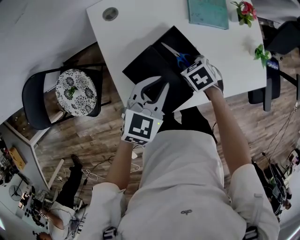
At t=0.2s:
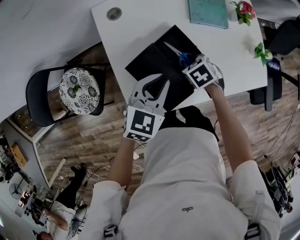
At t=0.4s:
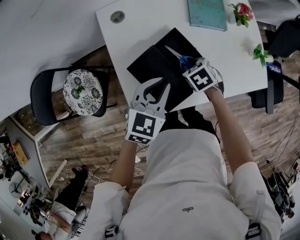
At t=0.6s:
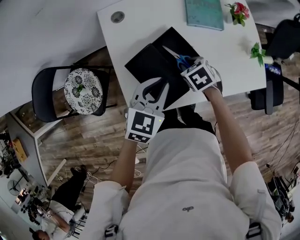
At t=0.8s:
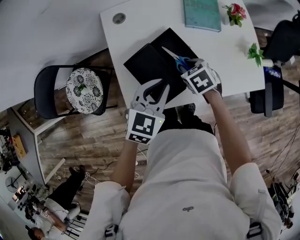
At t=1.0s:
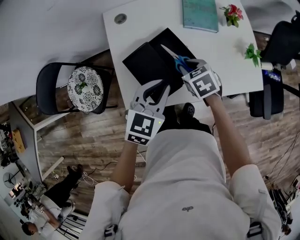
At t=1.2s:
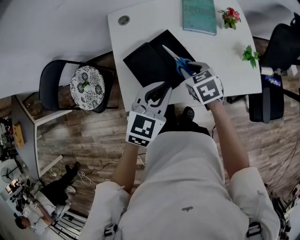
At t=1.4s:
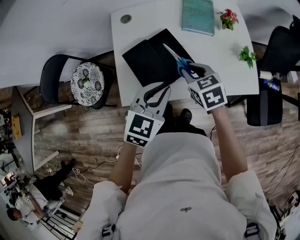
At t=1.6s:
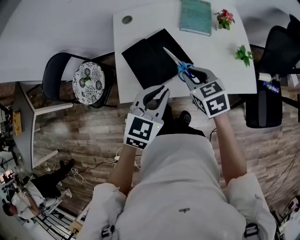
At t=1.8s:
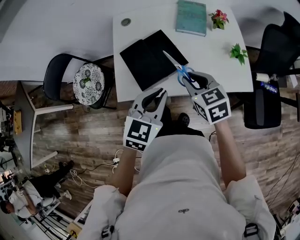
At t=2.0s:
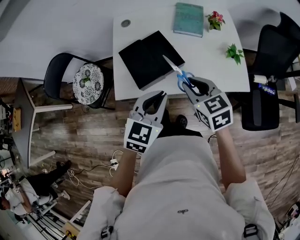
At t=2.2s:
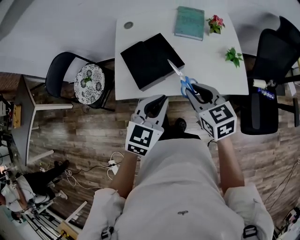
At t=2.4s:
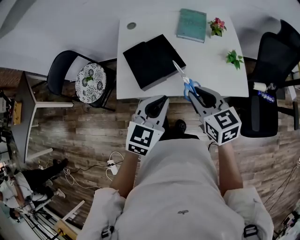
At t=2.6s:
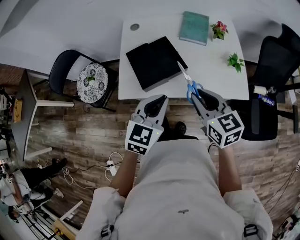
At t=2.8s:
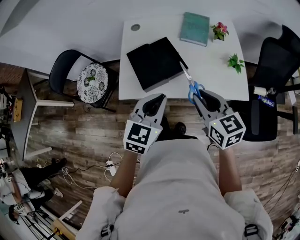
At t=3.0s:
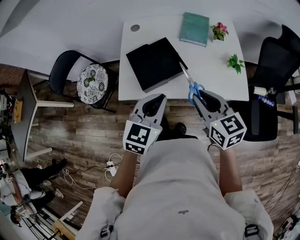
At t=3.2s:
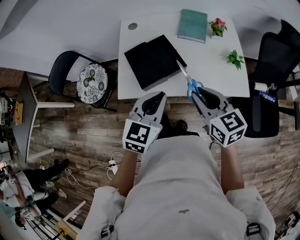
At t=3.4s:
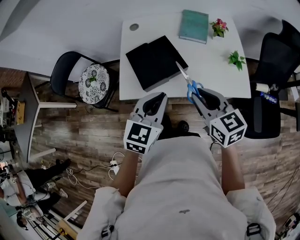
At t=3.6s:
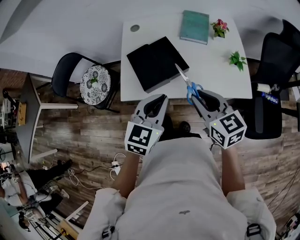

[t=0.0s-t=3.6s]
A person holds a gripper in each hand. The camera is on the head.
t=0.0s to t=1.8s: The right gripper travels upward and backward by approximately 25 cm, and points its fingers about 40 degrees further upward, while the left gripper goes approximately 20 cm backward, upward and to the right.
t=1.8s to t=3.6s: The right gripper shifts roughly 10 cm backward and upward.

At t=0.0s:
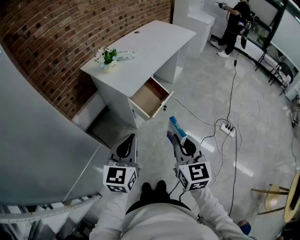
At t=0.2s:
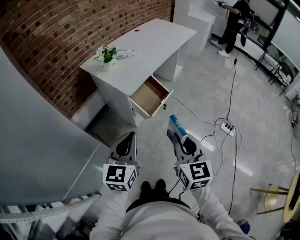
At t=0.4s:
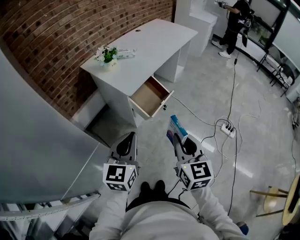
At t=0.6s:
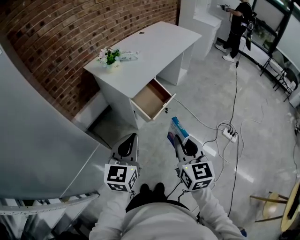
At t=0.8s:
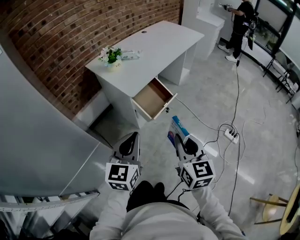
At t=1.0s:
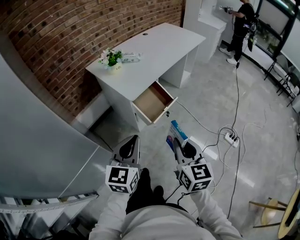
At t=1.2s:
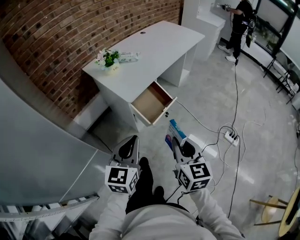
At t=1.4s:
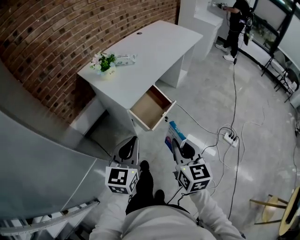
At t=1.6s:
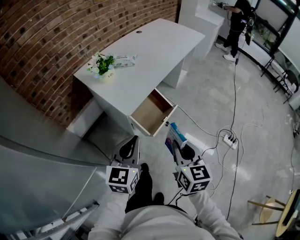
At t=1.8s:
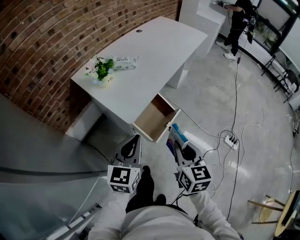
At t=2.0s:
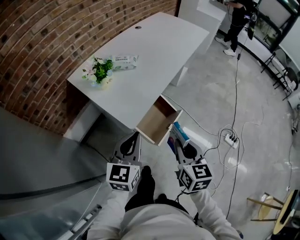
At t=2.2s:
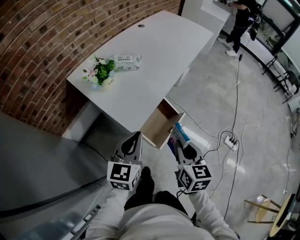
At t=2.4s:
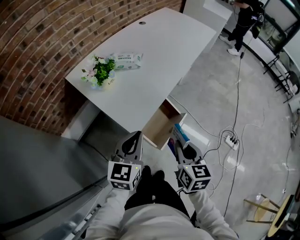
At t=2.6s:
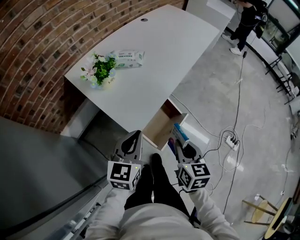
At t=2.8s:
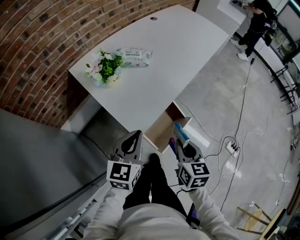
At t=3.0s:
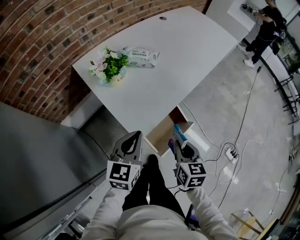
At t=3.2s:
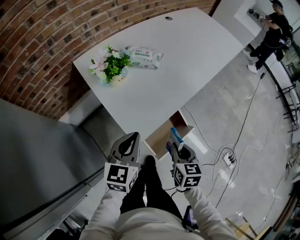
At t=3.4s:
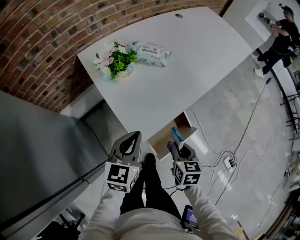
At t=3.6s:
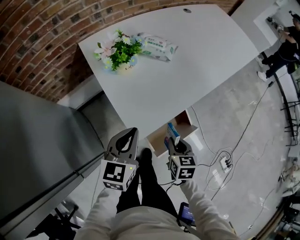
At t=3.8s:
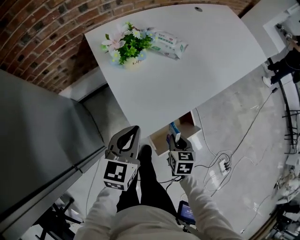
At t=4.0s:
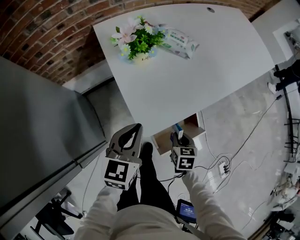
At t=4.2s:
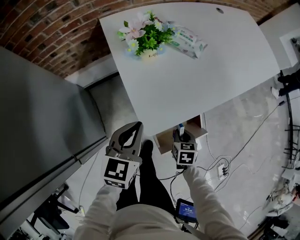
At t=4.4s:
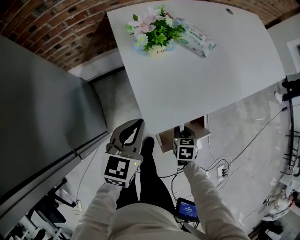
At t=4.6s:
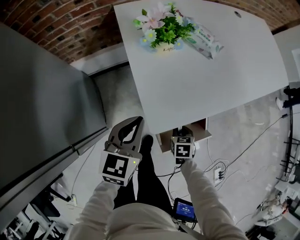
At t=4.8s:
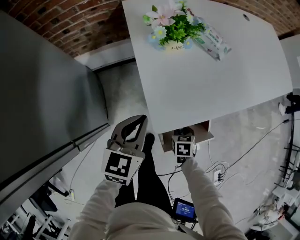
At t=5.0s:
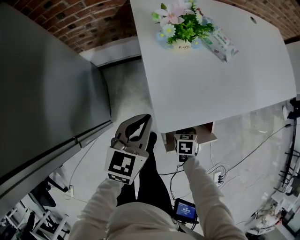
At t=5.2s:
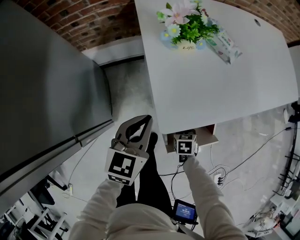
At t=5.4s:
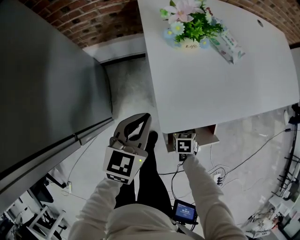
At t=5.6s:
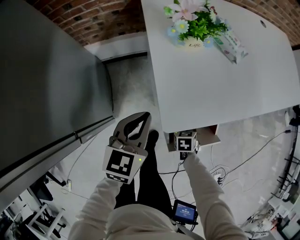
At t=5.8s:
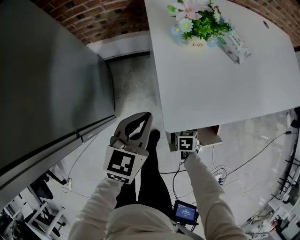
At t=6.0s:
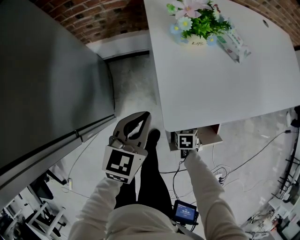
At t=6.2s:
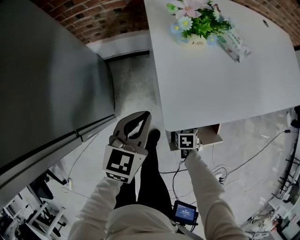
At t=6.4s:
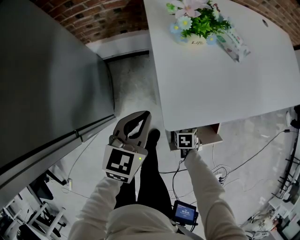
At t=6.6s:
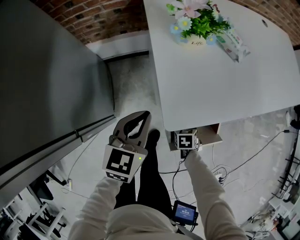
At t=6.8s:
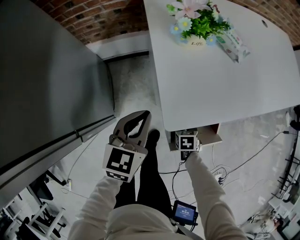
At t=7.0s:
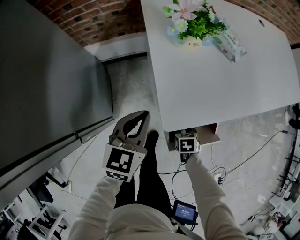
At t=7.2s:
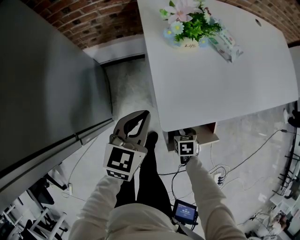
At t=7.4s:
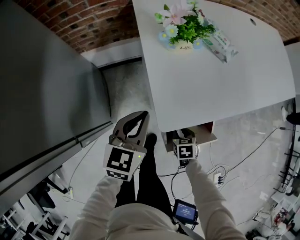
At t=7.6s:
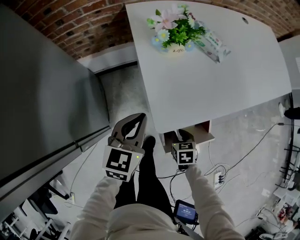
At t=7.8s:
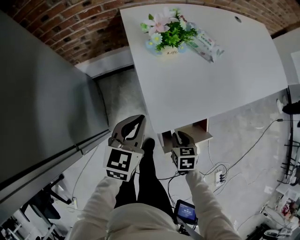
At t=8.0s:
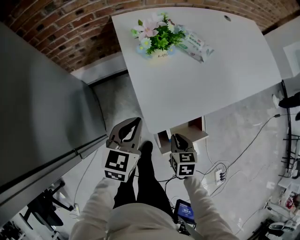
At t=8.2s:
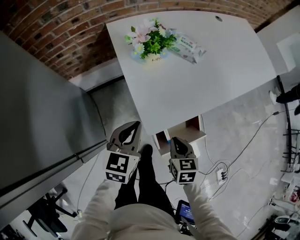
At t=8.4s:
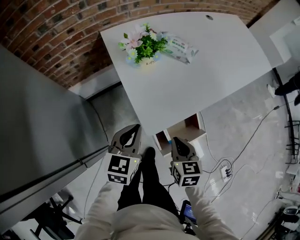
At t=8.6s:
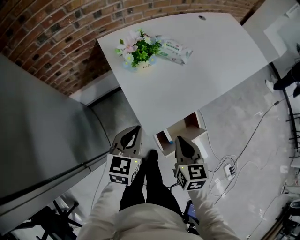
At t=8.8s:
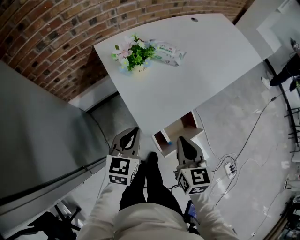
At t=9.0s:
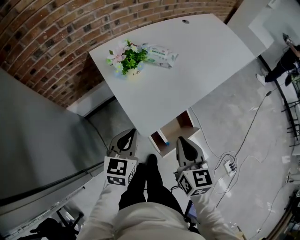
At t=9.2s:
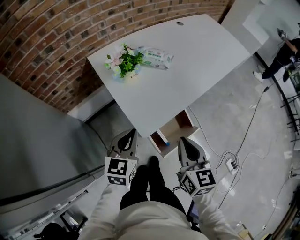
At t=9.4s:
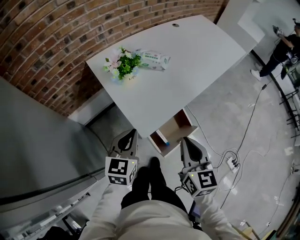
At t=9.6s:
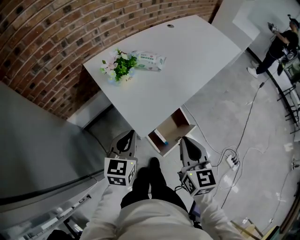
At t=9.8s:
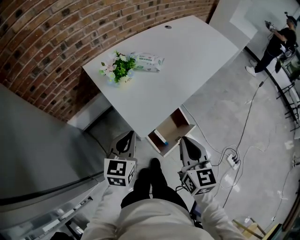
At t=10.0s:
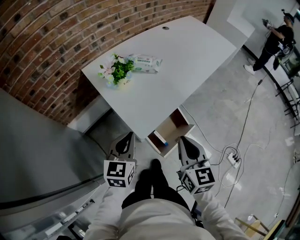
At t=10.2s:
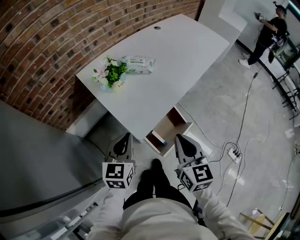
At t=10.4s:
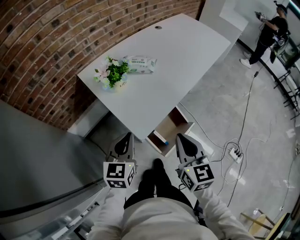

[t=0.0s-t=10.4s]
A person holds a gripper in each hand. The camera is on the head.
t=0.0s to t=1.4s: Both grippers travel together forward, some 10 cm.
t=1.4s to t=3.0s: The right gripper heads forward and downward, covering approximately 30 cm, while the left gripper goes some 25 cm forward.
t=3.0s to t=4.4s: The right gripper goes roughly 20 cm downward, and changes its angle by roughly 30 degrees. Meanwhile the left gripper shifts approximately 10 cm downward and to the left.
t=4.4s to t=6.0s: The left gripper changes place by approximately 5 cm. Meanwhile the right gripper travels downward by roughly 10 cm.
t=6.0s to t=7.4s: The right gripper changes place by some 5 cm.
t=7.4s to t=9.0s: The left gripper goes approximately 5 cm upward. The right gripper goes some 35 cm upward, tilts its fingers about 40 degrees upward, and closes its fingers.
t=9.0s to t=10.4s: The right gripper ends up some 5 cm from where it was.

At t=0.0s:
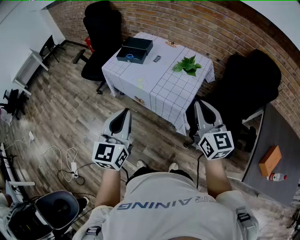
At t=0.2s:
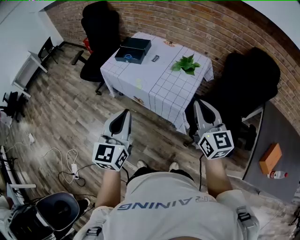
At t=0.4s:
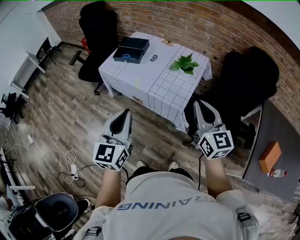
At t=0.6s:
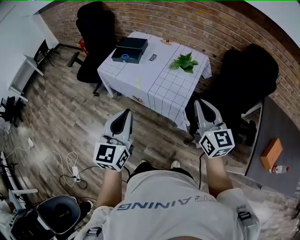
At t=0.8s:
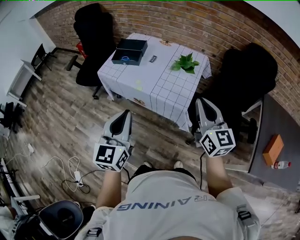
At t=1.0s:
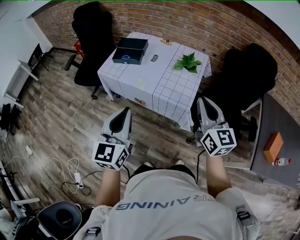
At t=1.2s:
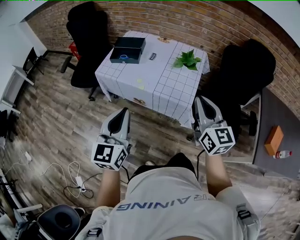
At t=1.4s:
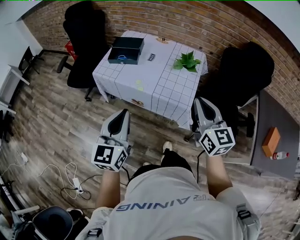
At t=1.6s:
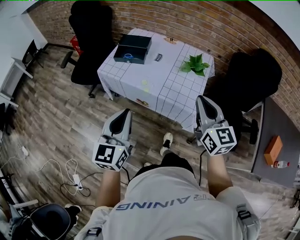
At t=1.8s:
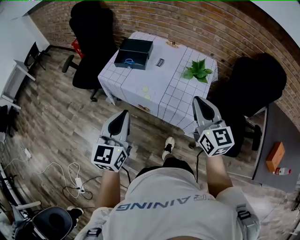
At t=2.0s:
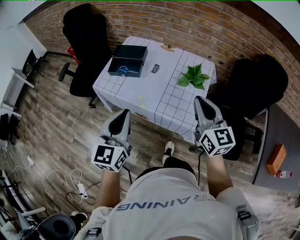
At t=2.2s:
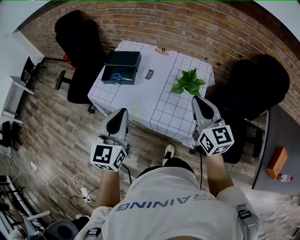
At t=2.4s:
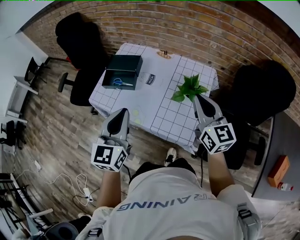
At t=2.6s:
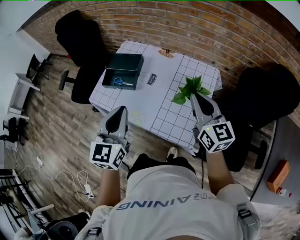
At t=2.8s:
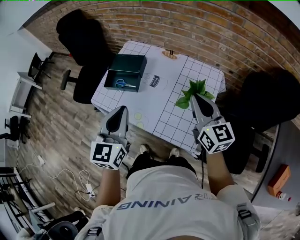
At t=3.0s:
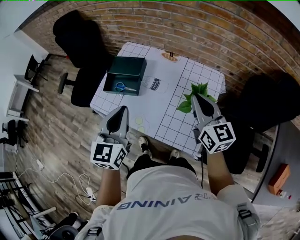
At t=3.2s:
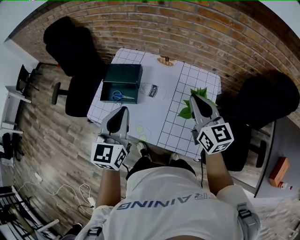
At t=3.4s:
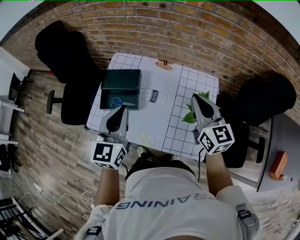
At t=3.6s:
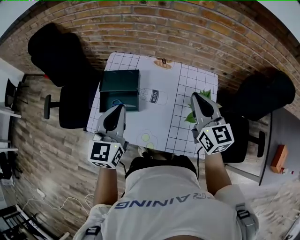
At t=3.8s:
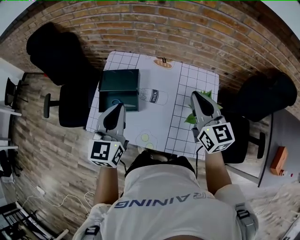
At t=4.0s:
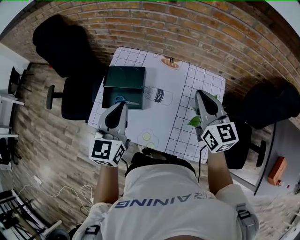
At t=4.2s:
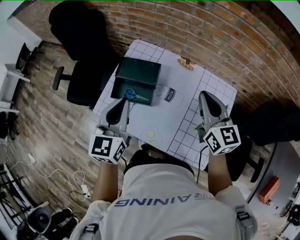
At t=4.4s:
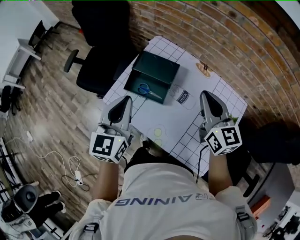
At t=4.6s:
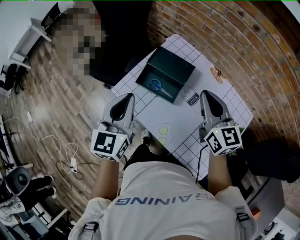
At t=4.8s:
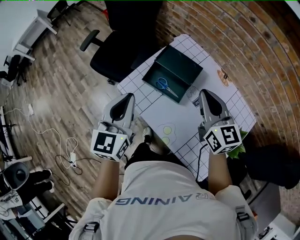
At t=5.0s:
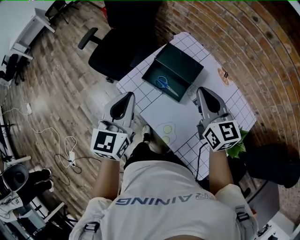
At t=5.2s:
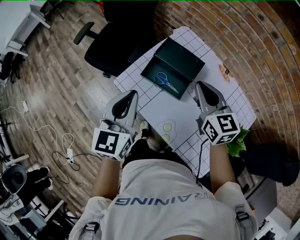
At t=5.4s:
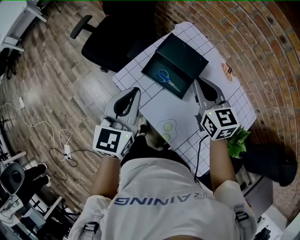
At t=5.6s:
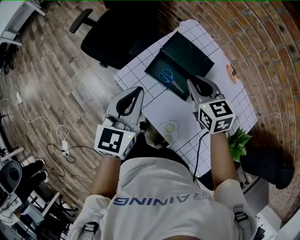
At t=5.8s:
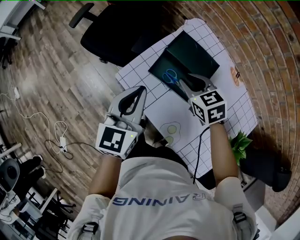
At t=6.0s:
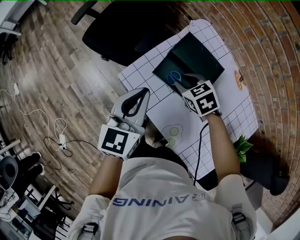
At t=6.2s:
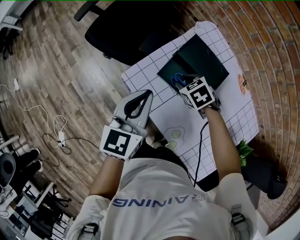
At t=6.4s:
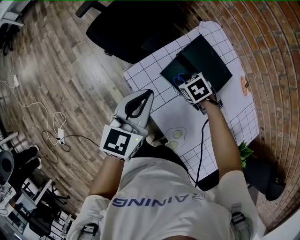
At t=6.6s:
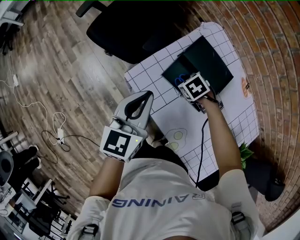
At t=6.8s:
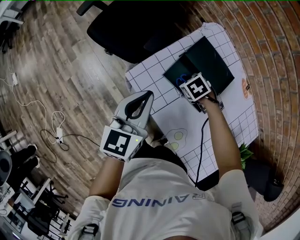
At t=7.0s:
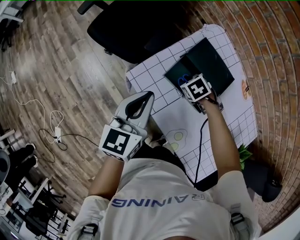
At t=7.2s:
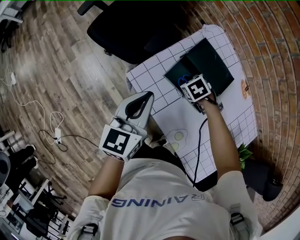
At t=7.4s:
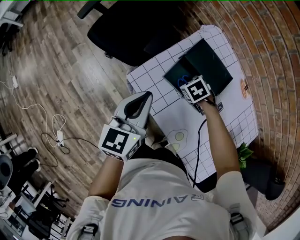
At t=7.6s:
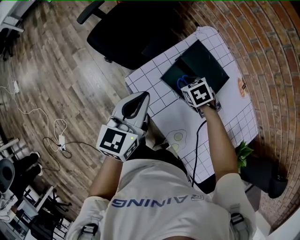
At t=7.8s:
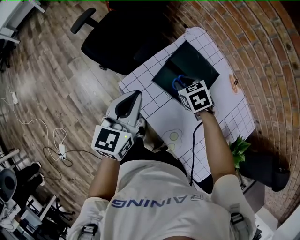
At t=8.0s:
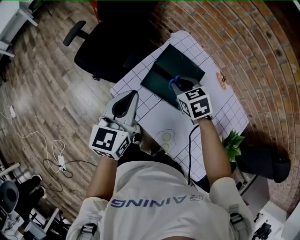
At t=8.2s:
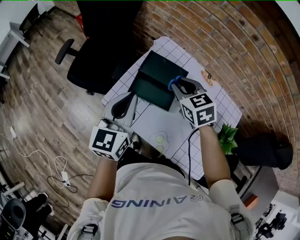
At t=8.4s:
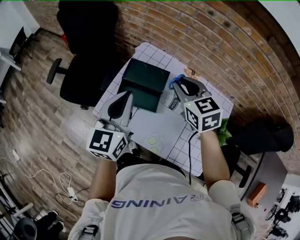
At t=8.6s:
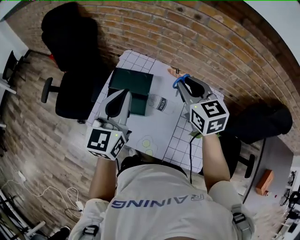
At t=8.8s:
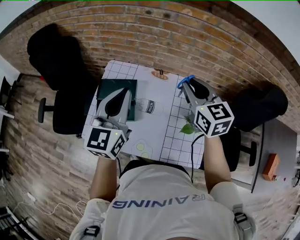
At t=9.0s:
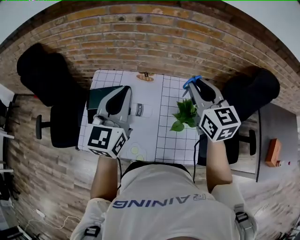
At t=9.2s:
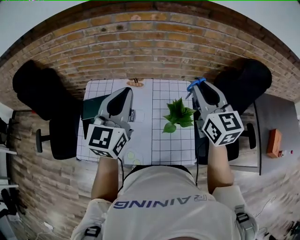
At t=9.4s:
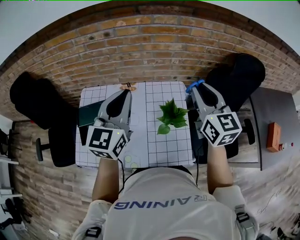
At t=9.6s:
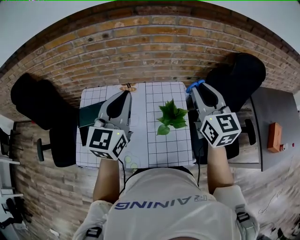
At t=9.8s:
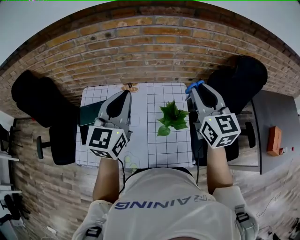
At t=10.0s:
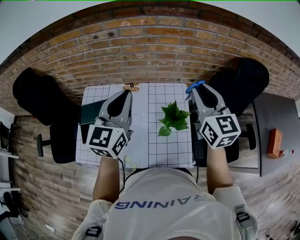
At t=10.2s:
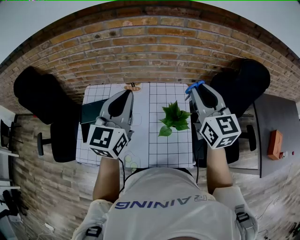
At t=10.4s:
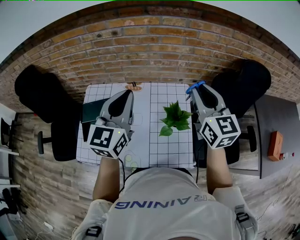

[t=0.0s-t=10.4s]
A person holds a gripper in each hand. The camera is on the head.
t=0.0s to t=1.4s: The left gripper moves to the left and forward, about 10 cm. Meanwhile the right gripper travels to the left by approximately 10 cm.
t=1.4s to t=3.0s: The two grippers go some 35 cm forward.
t=3.0s to t=4.4s: The grippers both shift to the left and forward by about 20 cm.
t=4.4s to t=6.0s: The left gripper moves downward, to the left and forward, approximately 15 cm. The right gripper goes roughly 35 cm downward, to the left and forward, tilts its fingers approximately 50 degrees downward, and opens.
t=6.0s to t=7.4s: The right gripper moves downward, some 10 cm.
t=7.4s to t=9.0s: The left gripper moves roughly 40 cm, and swivels about 50 degrees, while the right gripper shifts about 40 cm upward, and tilts its fingers approximately 70 degrees upward.
t=9.0s to t=10.4s: Both grippers move to the right, some 10 cm.
